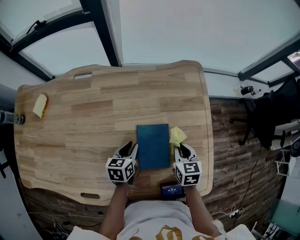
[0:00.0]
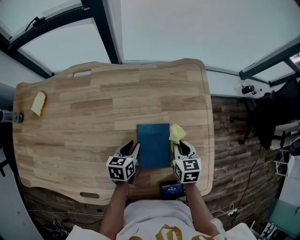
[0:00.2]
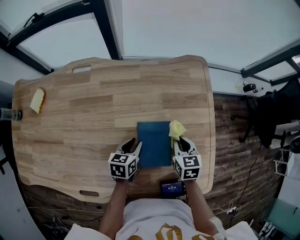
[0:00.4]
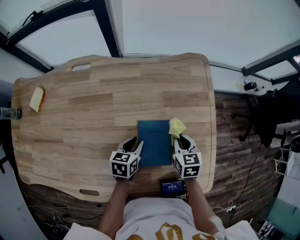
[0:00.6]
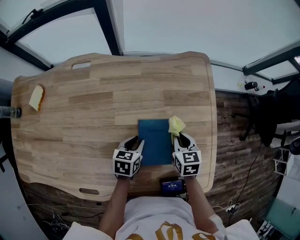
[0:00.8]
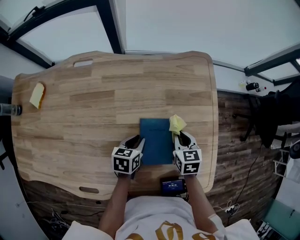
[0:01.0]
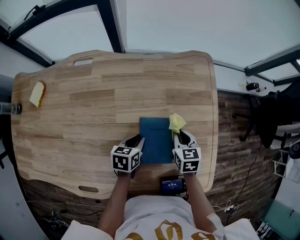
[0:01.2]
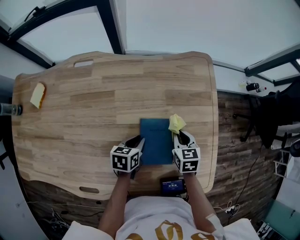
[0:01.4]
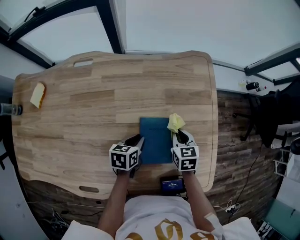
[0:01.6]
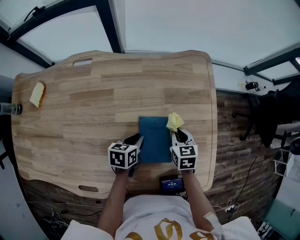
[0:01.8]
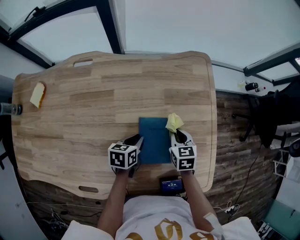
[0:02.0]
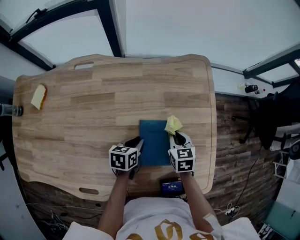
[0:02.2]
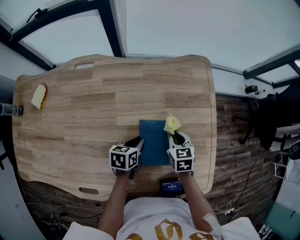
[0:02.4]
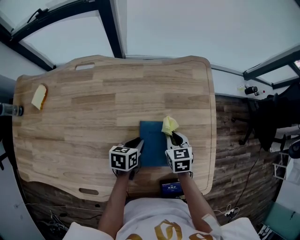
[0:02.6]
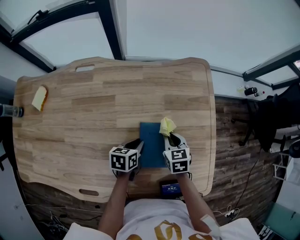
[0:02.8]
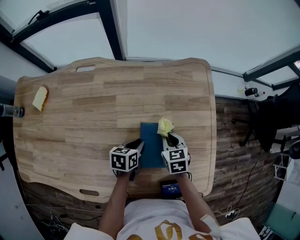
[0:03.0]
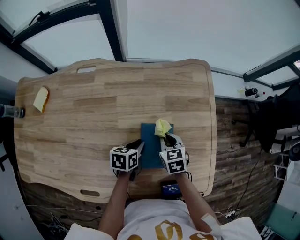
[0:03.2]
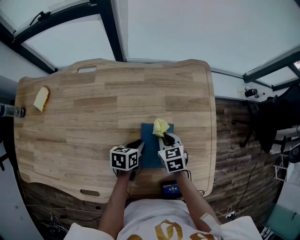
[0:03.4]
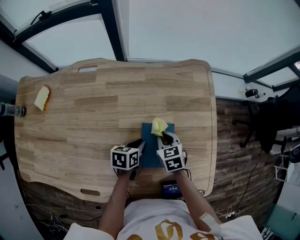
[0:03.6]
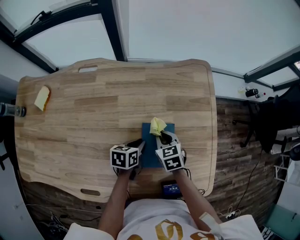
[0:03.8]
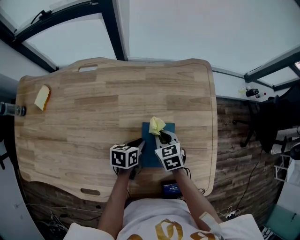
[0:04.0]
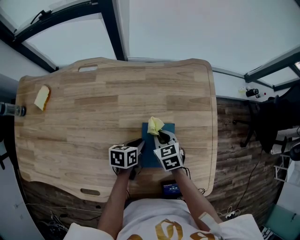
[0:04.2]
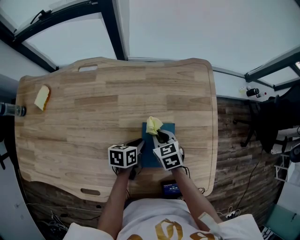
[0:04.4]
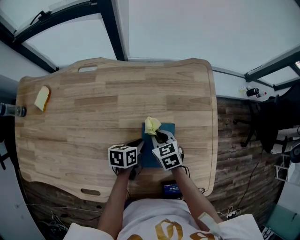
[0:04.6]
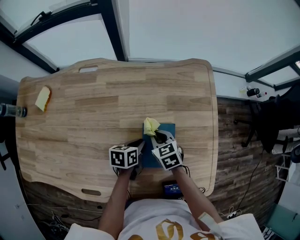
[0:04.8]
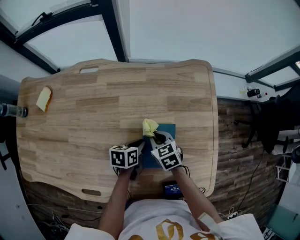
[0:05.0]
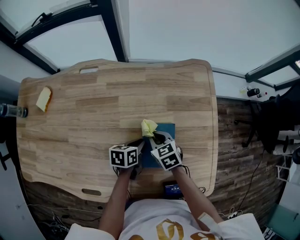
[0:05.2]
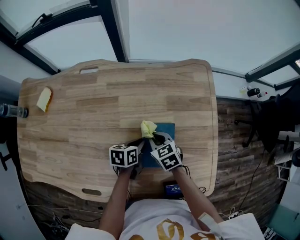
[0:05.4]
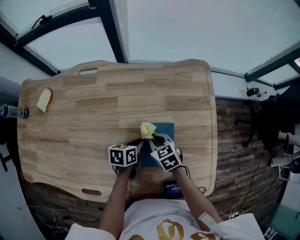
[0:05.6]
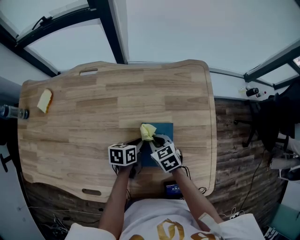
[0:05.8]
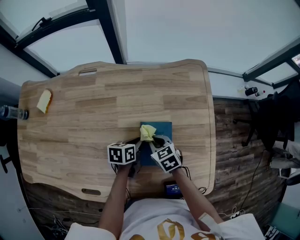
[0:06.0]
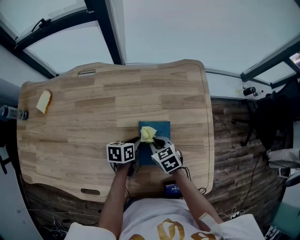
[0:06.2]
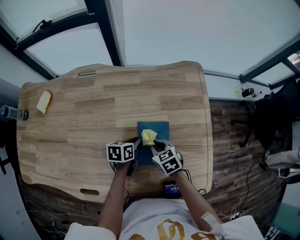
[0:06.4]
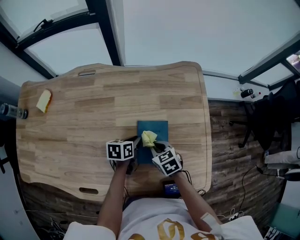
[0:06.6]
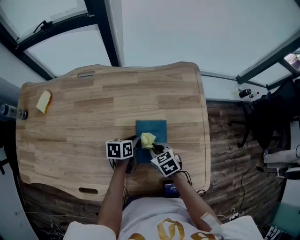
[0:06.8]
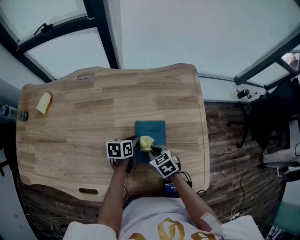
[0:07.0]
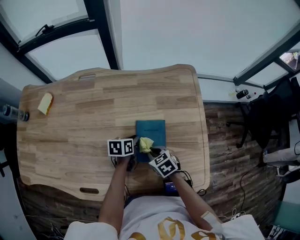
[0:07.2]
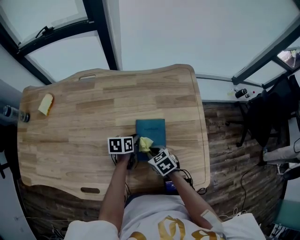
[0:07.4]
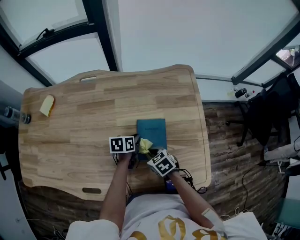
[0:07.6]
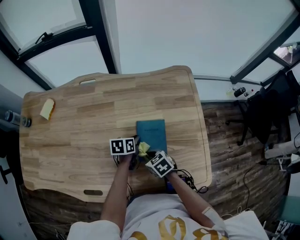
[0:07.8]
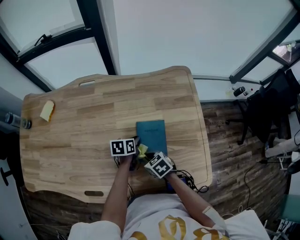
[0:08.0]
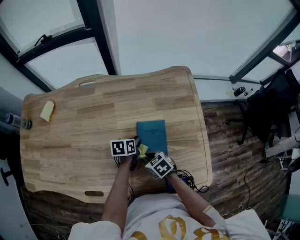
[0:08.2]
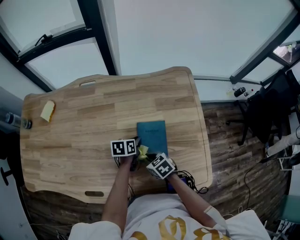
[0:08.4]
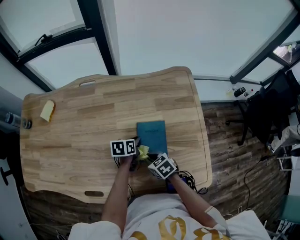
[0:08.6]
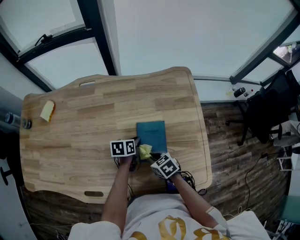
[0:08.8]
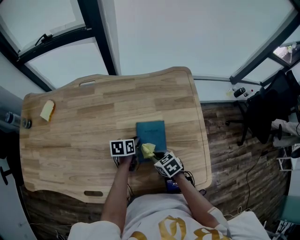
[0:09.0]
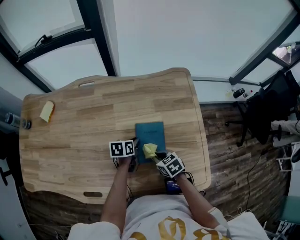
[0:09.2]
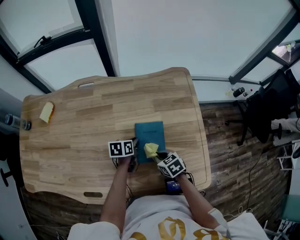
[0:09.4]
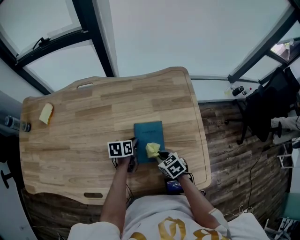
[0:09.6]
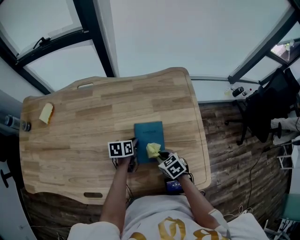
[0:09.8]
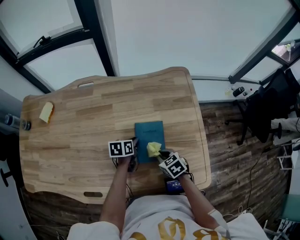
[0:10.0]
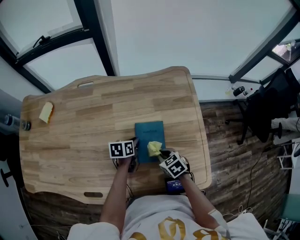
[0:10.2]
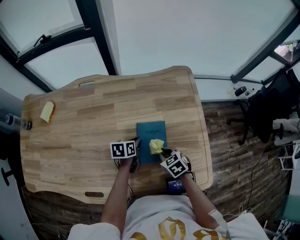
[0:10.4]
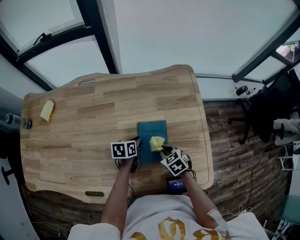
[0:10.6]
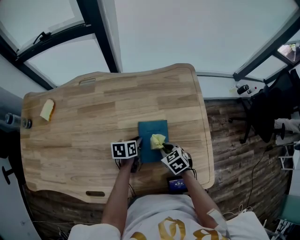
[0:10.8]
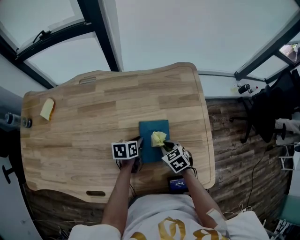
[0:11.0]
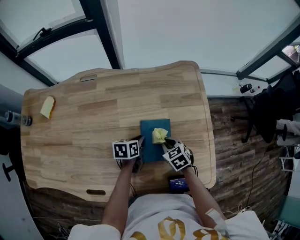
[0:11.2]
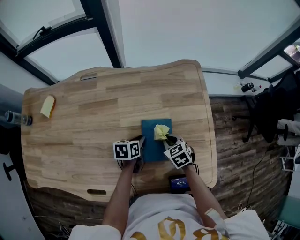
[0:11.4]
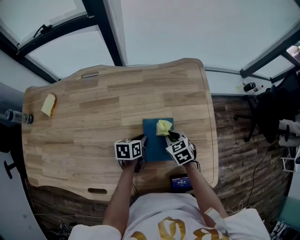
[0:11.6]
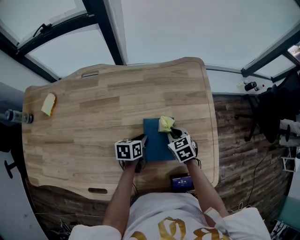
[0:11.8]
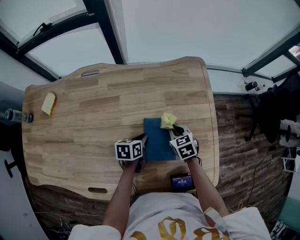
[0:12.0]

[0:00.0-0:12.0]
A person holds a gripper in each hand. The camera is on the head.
0:00.0 to 0:01.6: The right gripper changes place by approximately 5 cm.
0:01.6 to 0:03.0: The grippers stay close to where they were, moving slightly.
0:03.0 to 0:04.4: The right gripper travels to the left by roughly 5 cm.
0:04.4 to 0:06.0: The grippers move only a little.
0:06.0 to 0:07.6: The right gripper goes roughly 10 cm backward.
0:07.6 to 0:09.0: The grippers make only small movements.
0:09.0 to 0:10.4: The grippers move only a little.
0:10.4 to 0:12.0: The right gripper heads forward, covering approximately 10 cm.

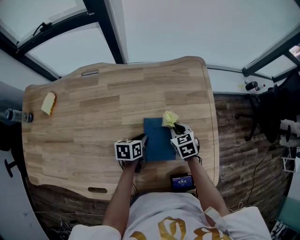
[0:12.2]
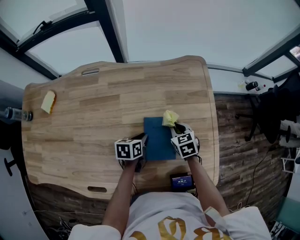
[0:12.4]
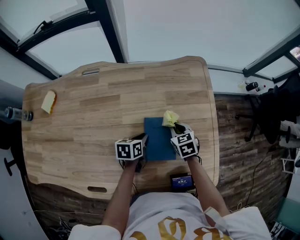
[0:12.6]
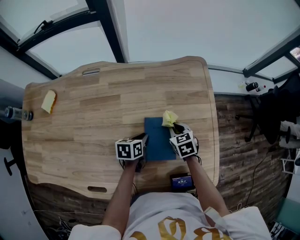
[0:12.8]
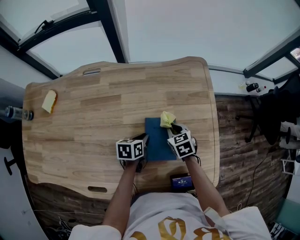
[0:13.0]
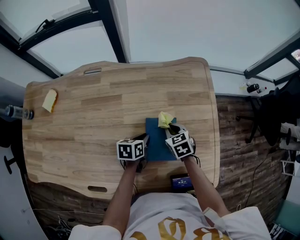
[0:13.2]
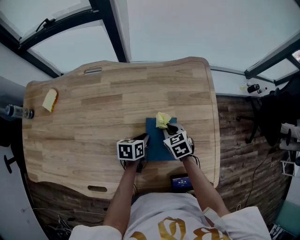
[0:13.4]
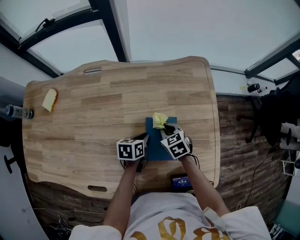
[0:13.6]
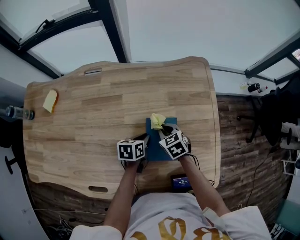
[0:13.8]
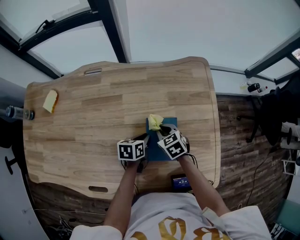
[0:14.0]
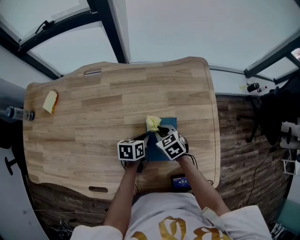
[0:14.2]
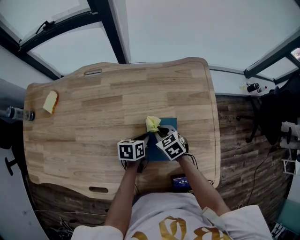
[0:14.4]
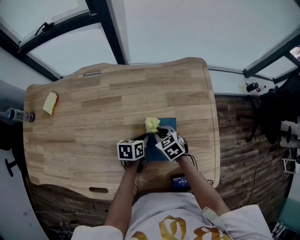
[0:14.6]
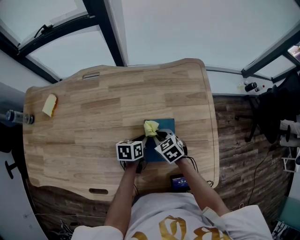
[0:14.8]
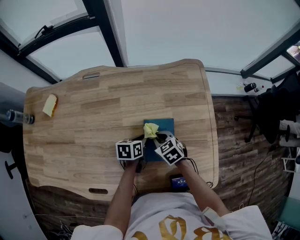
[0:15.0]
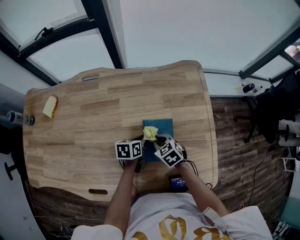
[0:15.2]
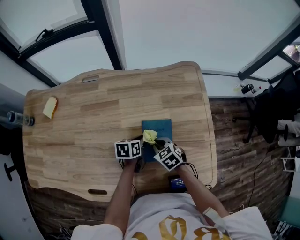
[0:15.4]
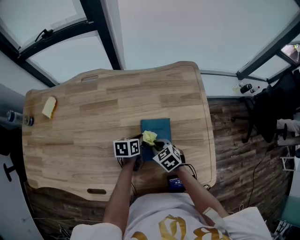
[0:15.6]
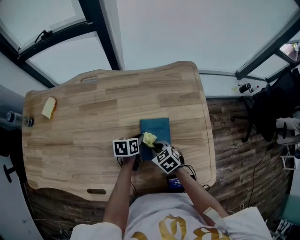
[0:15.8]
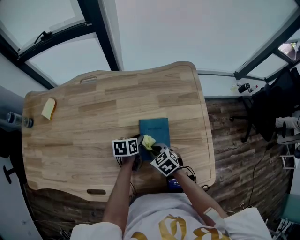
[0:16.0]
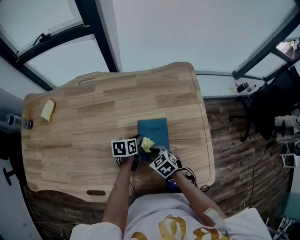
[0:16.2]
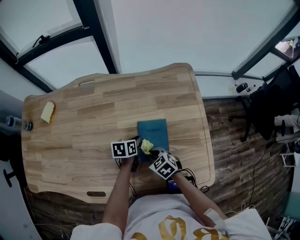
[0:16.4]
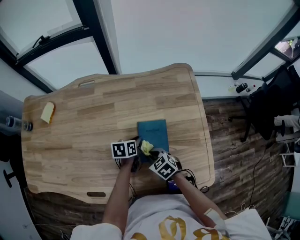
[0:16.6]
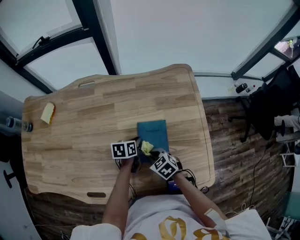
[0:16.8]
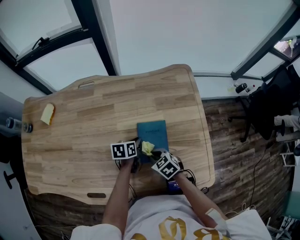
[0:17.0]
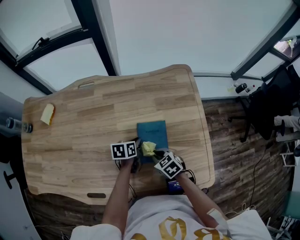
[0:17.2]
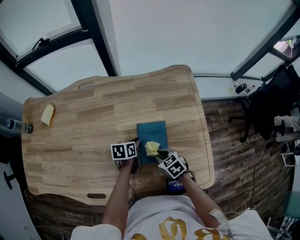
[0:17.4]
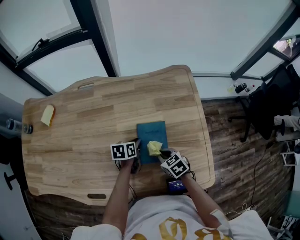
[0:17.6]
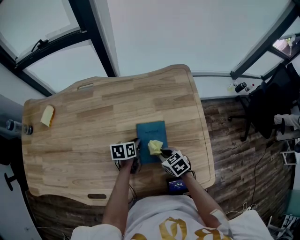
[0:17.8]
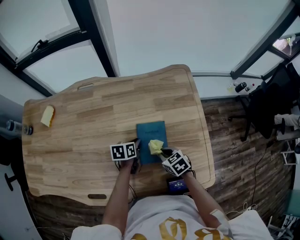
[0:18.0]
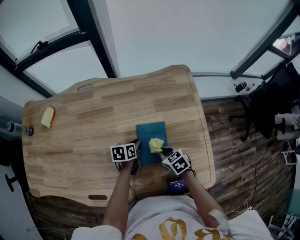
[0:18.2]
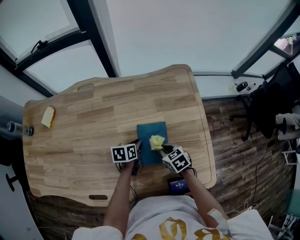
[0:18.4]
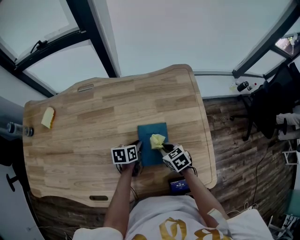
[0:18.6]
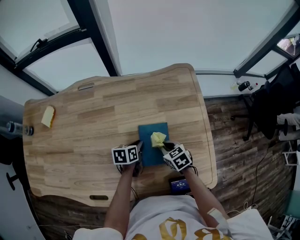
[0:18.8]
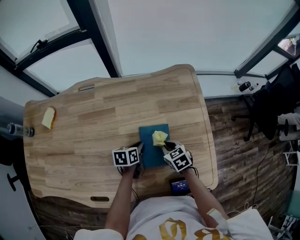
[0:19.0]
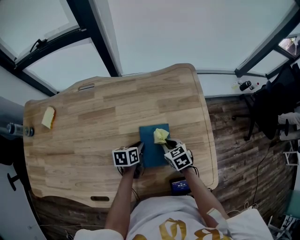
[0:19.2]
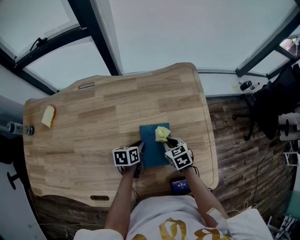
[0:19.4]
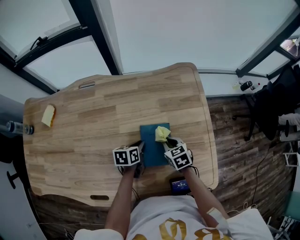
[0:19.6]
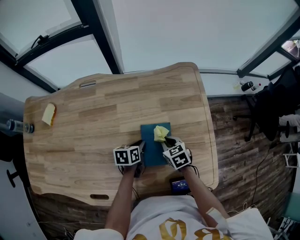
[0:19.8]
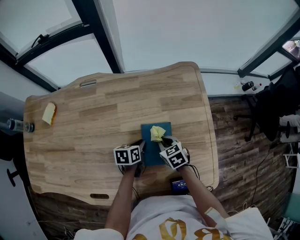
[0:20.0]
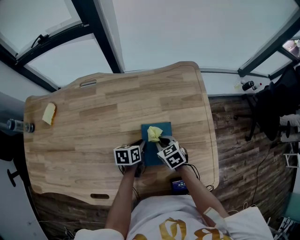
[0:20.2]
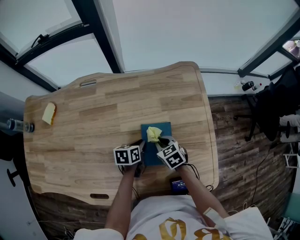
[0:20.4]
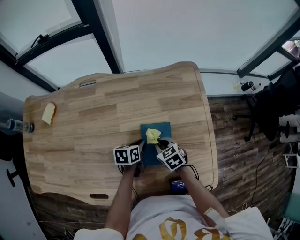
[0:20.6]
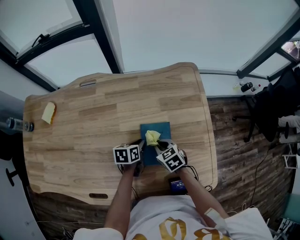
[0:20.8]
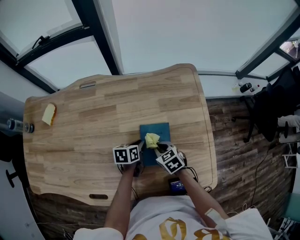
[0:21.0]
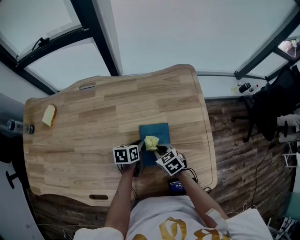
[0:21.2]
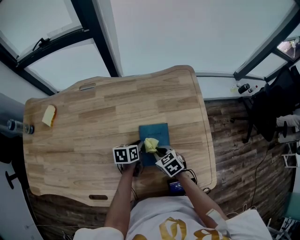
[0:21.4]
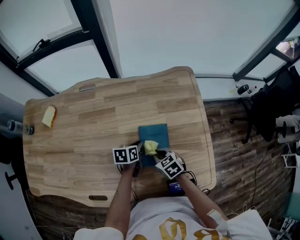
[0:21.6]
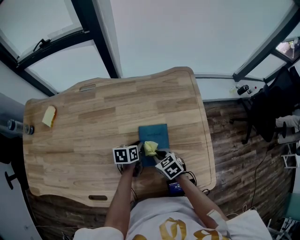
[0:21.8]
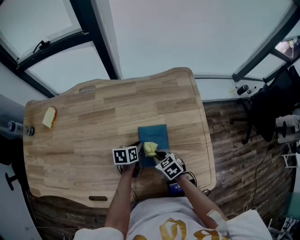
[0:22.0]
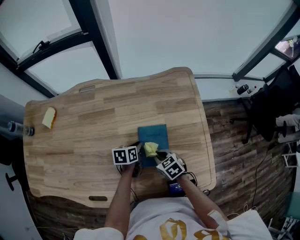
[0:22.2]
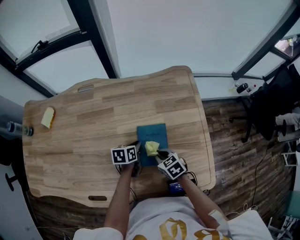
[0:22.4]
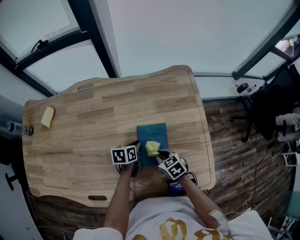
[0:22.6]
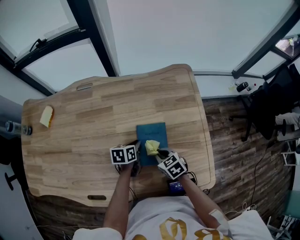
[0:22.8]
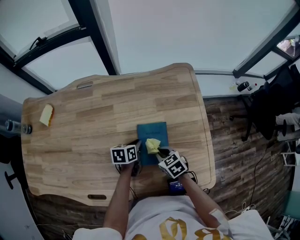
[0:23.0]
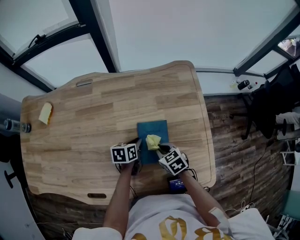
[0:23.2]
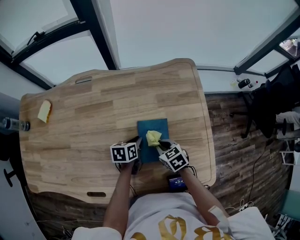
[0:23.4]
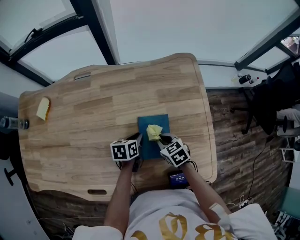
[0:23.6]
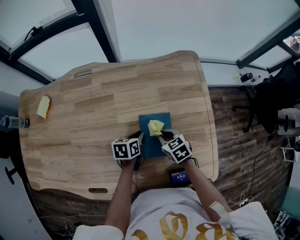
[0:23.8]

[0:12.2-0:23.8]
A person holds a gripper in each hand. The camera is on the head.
0:12.2 to 0:13.6: The right gripper heads to the left, covering approximately 5 cm.
0:13.6 to 0:15.0: The grippers stay close to where they were, moving slightly.
0:15.0 to 0:16.6: The right gripper shifts about 10 cm backward.
0:16.6 to 0:18.0: The right gripper shifts approximately 5 cm to the right.
0:18.0 to 0:19.4: The right gripper heads forward, covering approximately 10 cm.
0:19.4 to 0:21.0: The right gripper travels to the left by some 5 cm.
0:21.0 to 0:22.4: The grippers make only small movements.
0:22.4 to 0:23.8: The right gripper shifts about 5 cm forward.

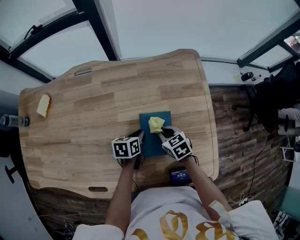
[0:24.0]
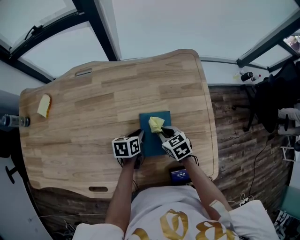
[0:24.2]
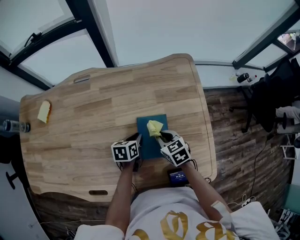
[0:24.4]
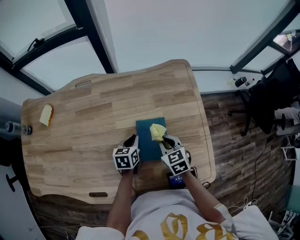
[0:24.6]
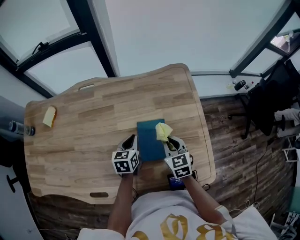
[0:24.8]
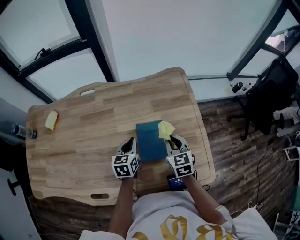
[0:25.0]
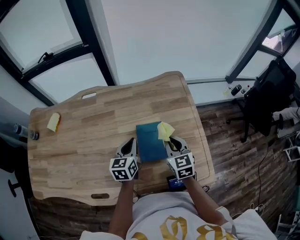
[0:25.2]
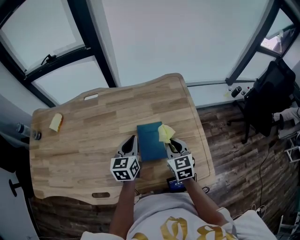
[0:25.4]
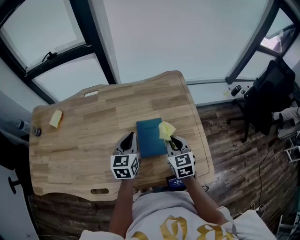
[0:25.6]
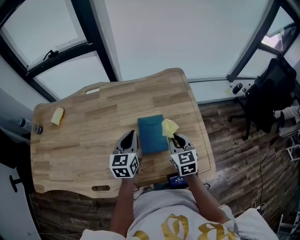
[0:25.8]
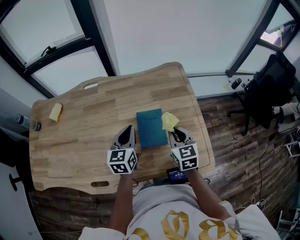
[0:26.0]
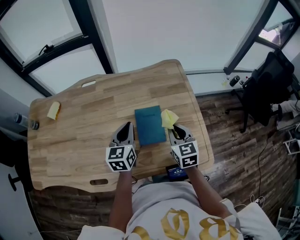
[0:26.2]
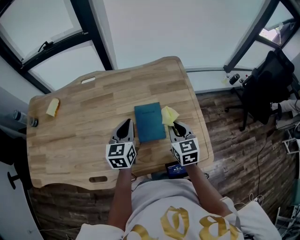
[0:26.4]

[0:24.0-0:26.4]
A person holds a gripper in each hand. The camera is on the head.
0:24.0 to 0:25.2: Both grippers travel together upward, approximately 15 cm. The right gripper rotates about 30 degrees; the left gripper rotates some 30 degrees.
0:25.2 to 0:26.4: The left gripper heads upward, covering roughly 5 cm.
